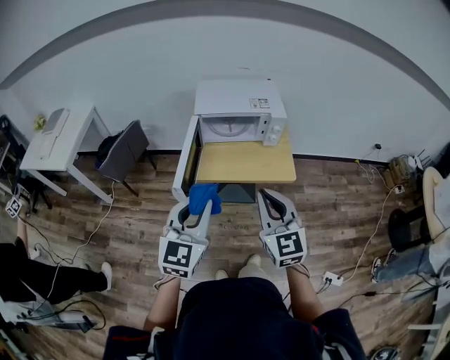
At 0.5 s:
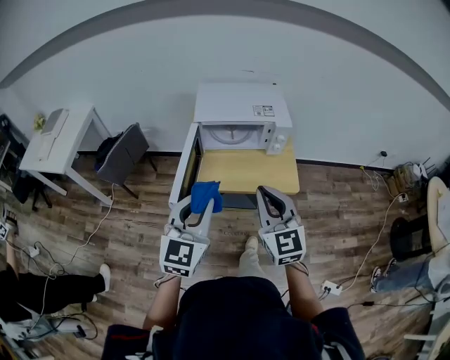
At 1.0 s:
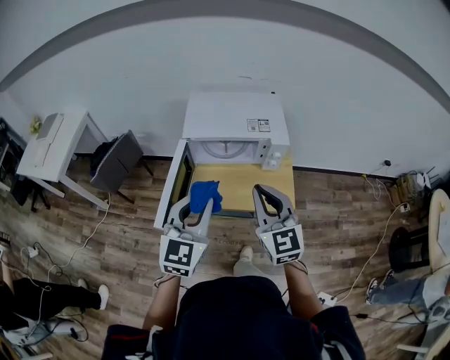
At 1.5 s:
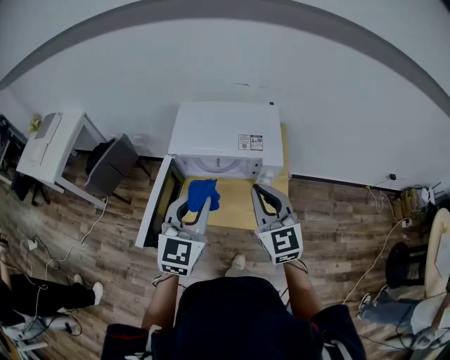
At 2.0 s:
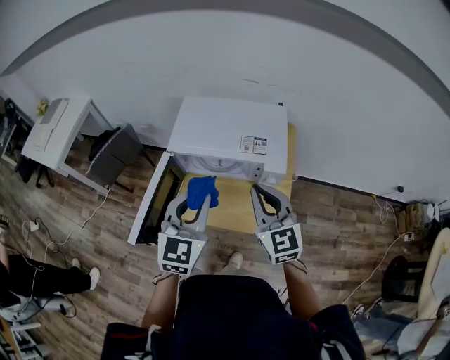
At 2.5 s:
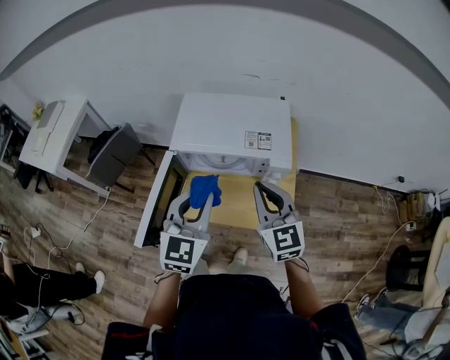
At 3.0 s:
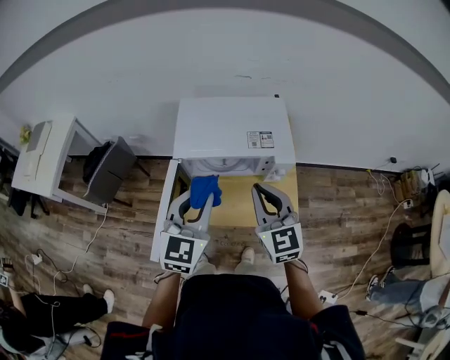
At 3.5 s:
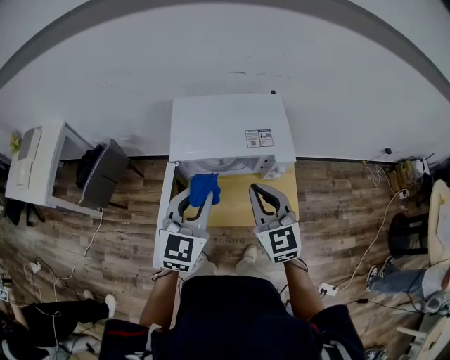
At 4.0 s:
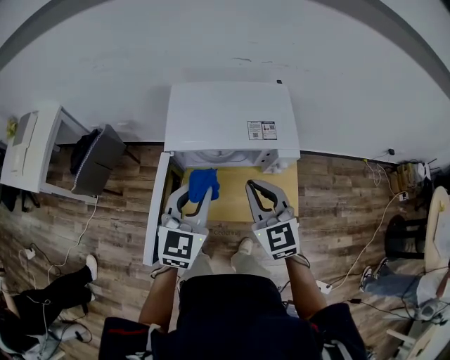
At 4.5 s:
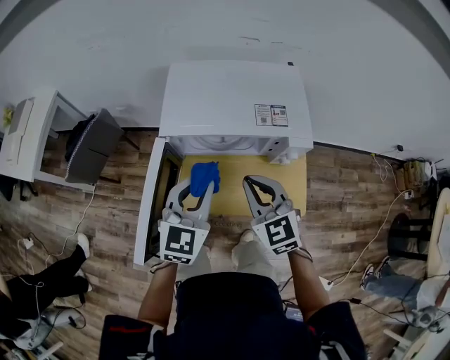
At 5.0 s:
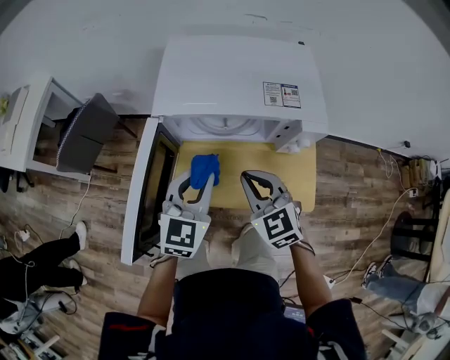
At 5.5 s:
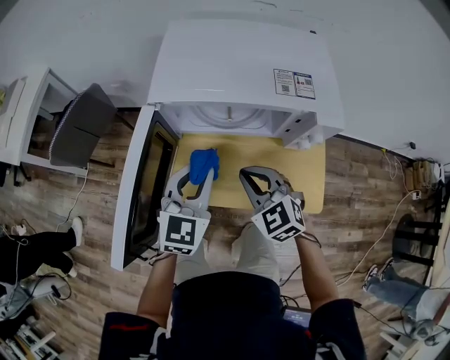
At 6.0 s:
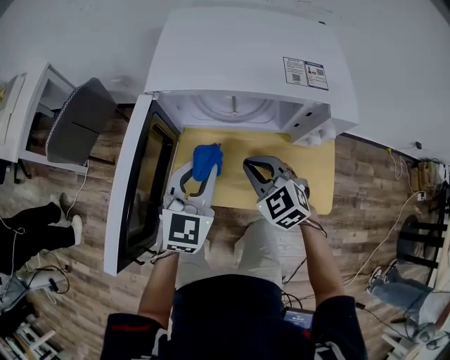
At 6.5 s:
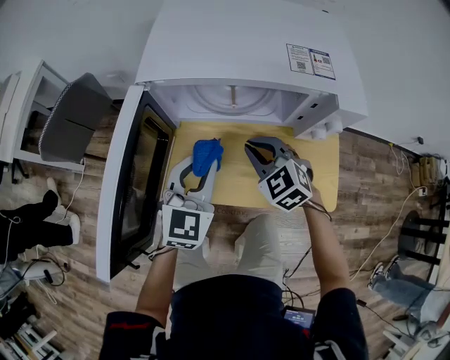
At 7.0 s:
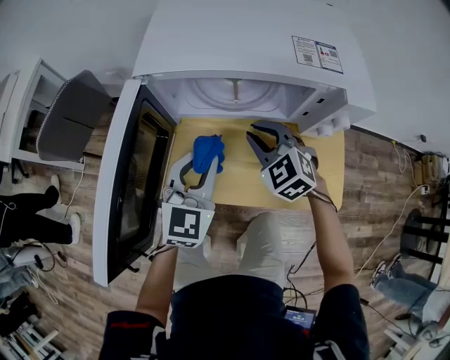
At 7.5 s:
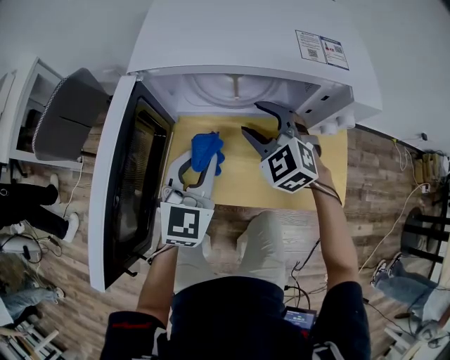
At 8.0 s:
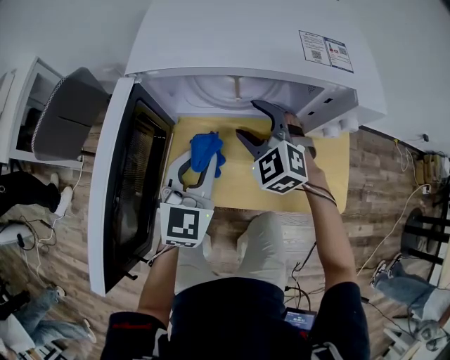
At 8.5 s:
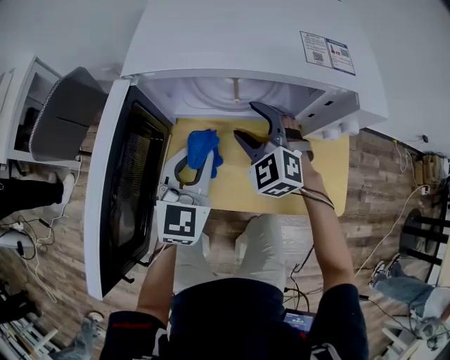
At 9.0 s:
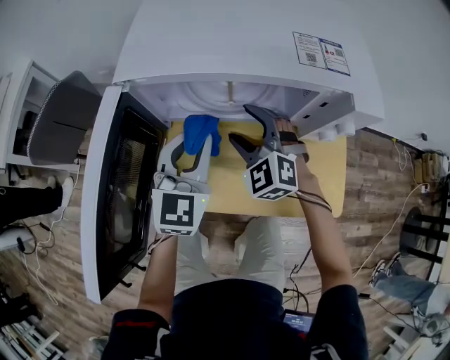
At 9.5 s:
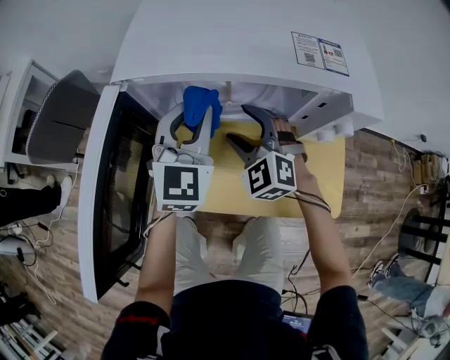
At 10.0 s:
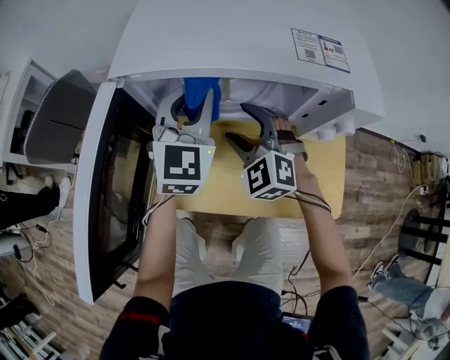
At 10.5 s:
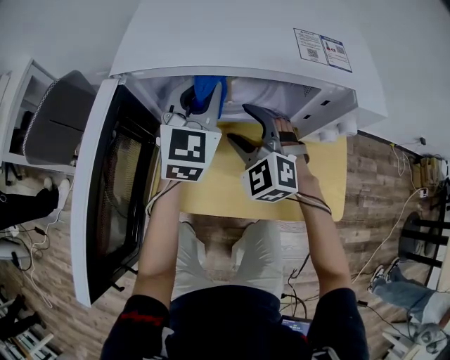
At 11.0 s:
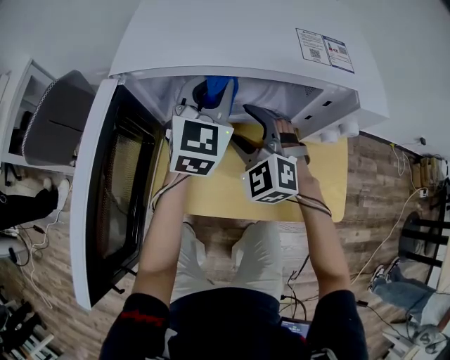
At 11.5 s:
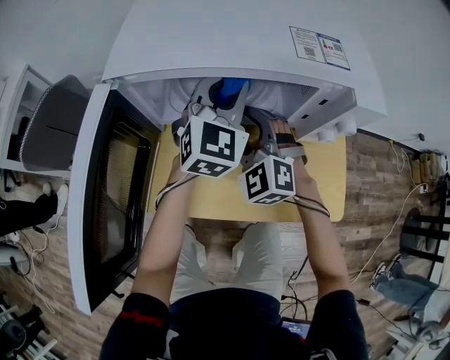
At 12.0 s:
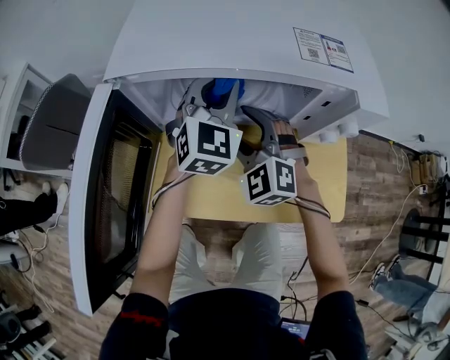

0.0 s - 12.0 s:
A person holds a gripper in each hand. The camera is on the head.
0.0 s - 2.0 s: The left gripper heads forward and to the right, covering roughly 30 cm. The right gripper is displaced forward by approximately 30 cm.
2.0 s - 4.0 s: The two grippers go about 10 cm to the left and downward.
4.0 s - 6.0 s: Both grippers move downward, roughly 25 cm. The right gripper rotates some 30 degrees.
6.0 s - 8.0 s: The left gripper is displaced downward by roughly 5 cm. The right gripper heads forward, covering some 10 cm, and opens its fingers.
8.0 s - 10.0 s: The left gripper shifts roughly 15 cm forward and upward.
10.0 s - 12.0 s: The left gripper travels to the right by about 5 cm.

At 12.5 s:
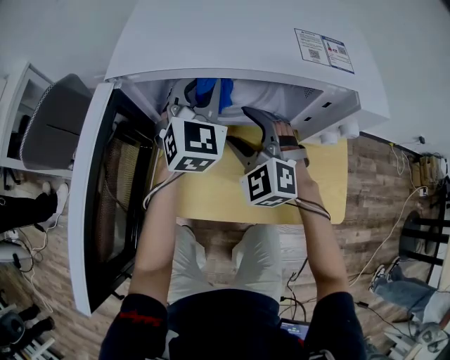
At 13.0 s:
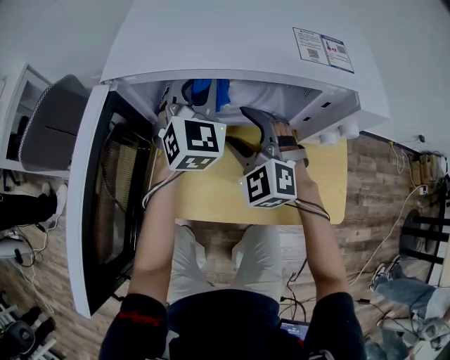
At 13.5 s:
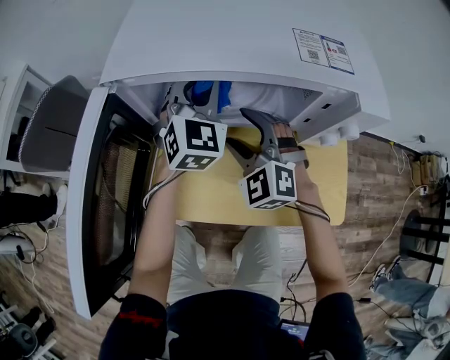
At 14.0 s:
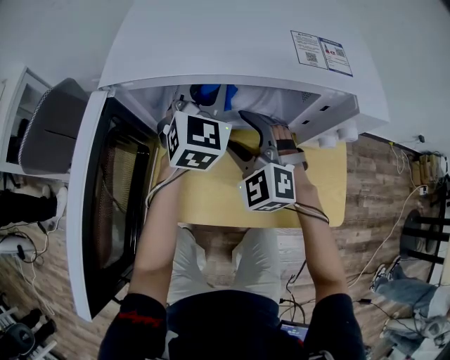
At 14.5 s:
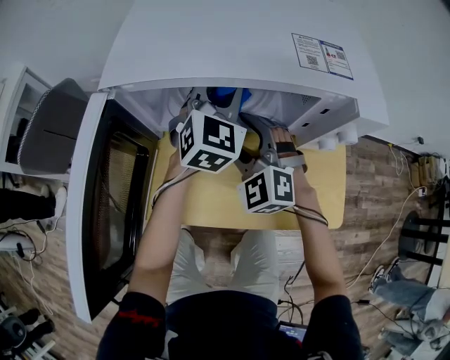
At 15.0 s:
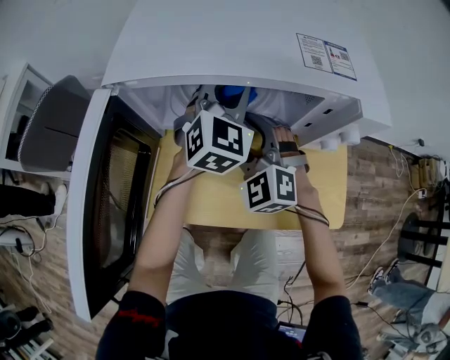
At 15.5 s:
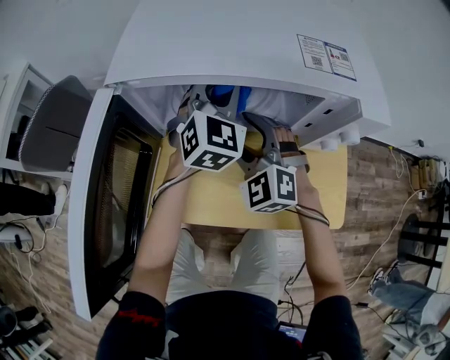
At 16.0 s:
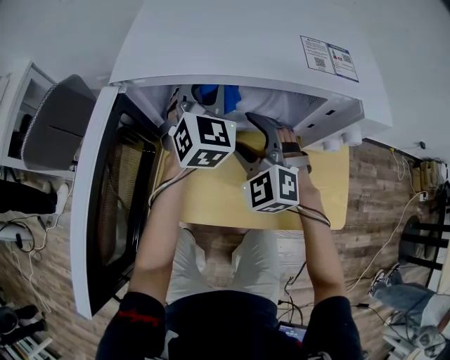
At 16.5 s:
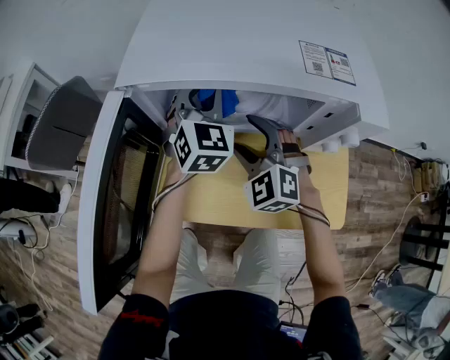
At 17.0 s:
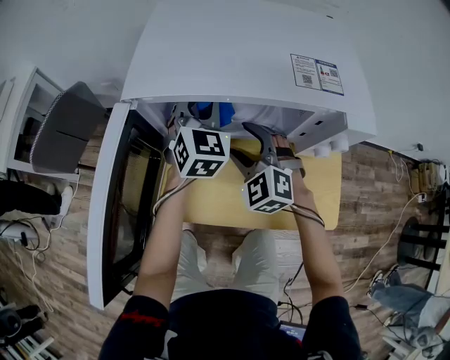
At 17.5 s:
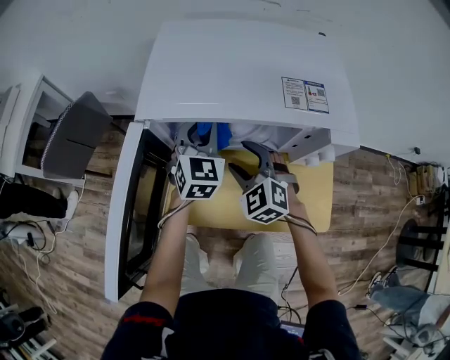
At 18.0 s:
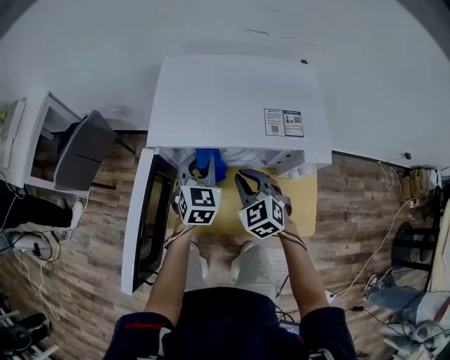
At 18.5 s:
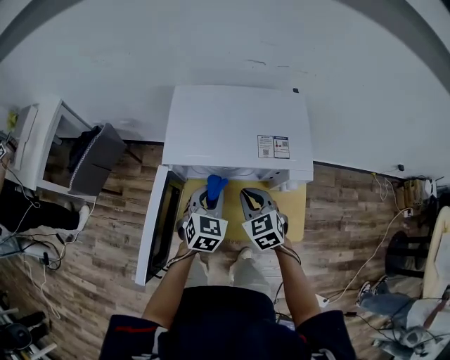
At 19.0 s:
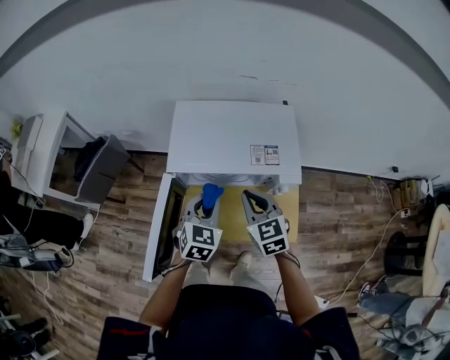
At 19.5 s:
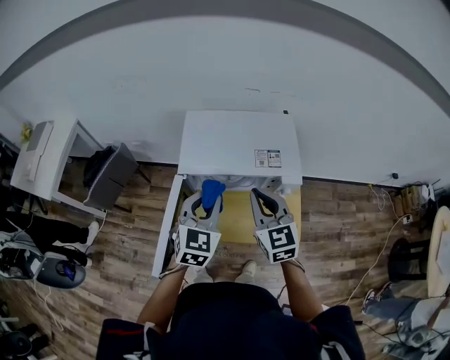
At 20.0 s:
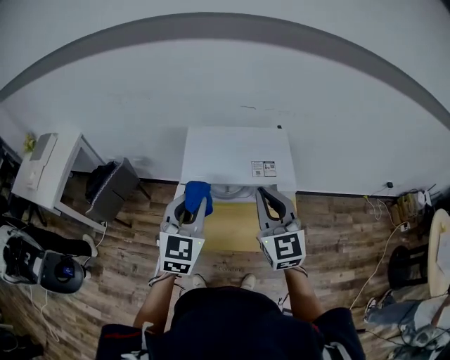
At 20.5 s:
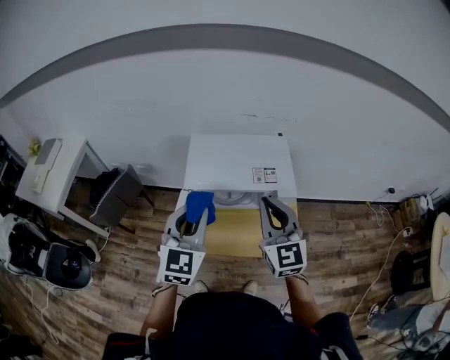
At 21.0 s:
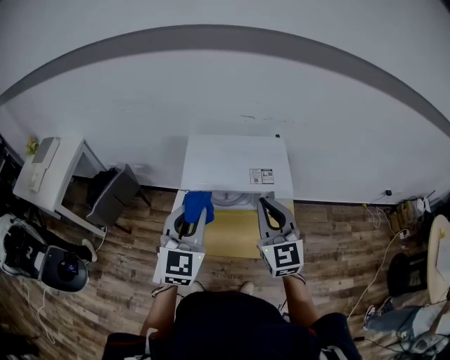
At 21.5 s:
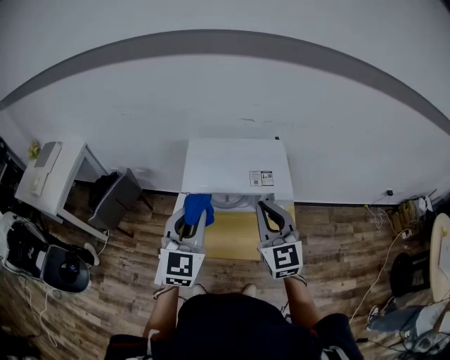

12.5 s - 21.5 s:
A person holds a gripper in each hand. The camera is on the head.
12.5 s - 14.5 s: The left gripper travels to the right by some 5 cm.
14.5 s - 17.0 s: The left gripper is displaced to the left by roughly 5 cm.
17.0 s - 19.5 s: The right gripper shifts approximately 30 cm upward, turns by about 40 degrees, and closes; the left gripper shifts about 30 cm upward and backward.
19.5 s - 21.5 s: Both grippers travel together upward, roughly 10 cm.

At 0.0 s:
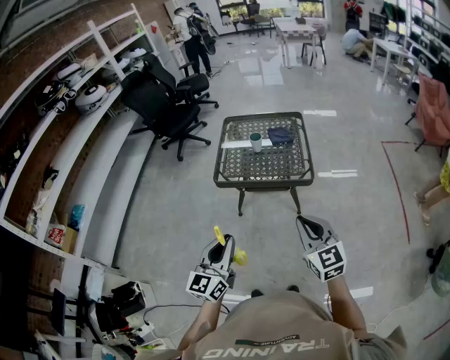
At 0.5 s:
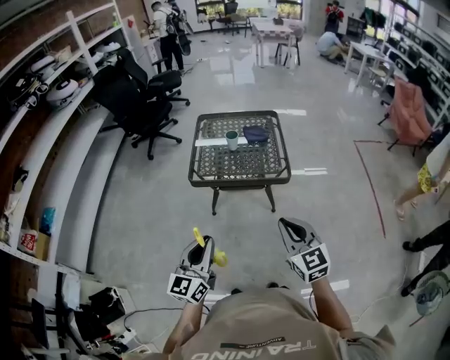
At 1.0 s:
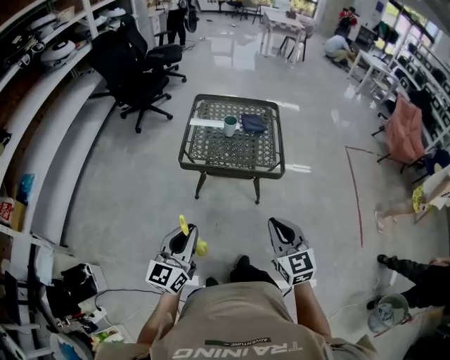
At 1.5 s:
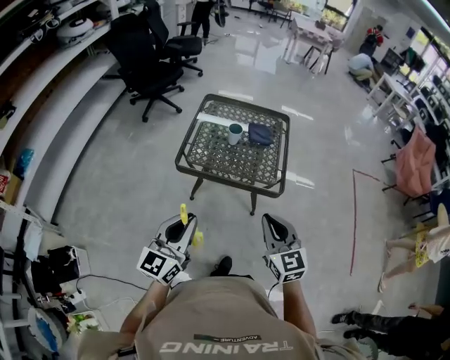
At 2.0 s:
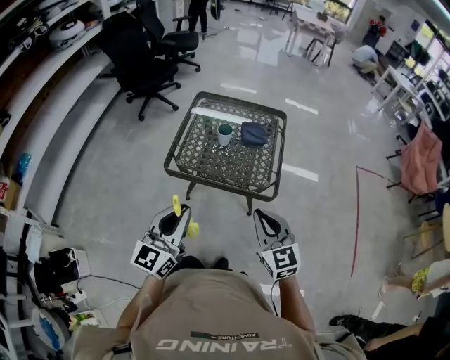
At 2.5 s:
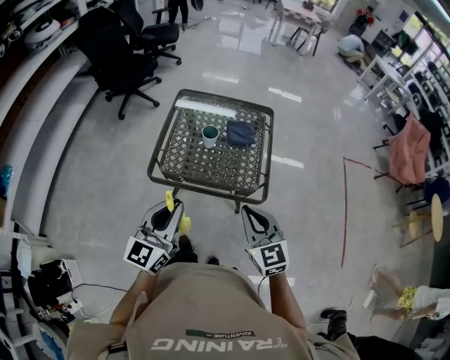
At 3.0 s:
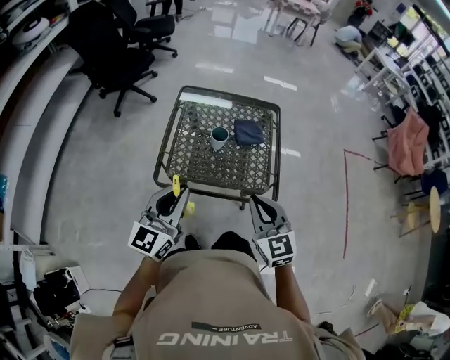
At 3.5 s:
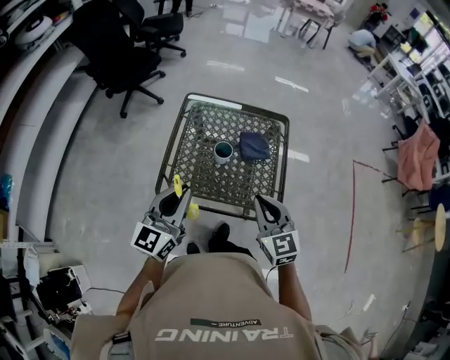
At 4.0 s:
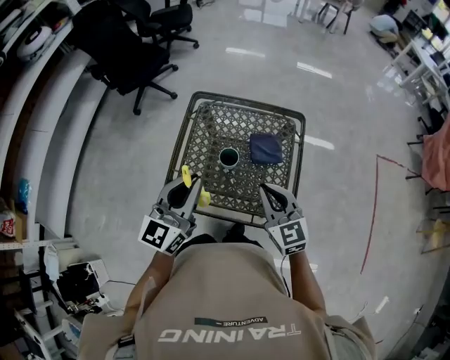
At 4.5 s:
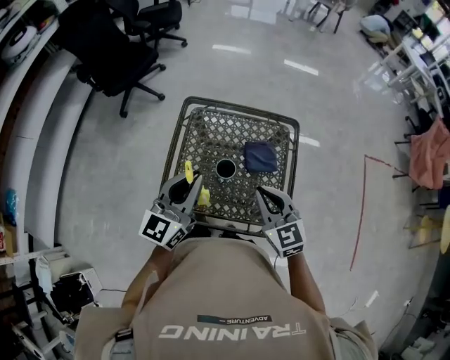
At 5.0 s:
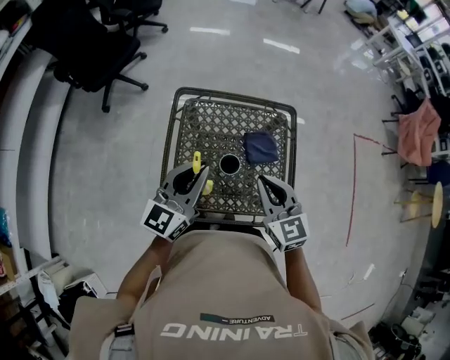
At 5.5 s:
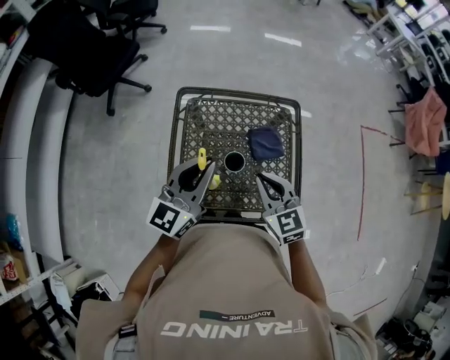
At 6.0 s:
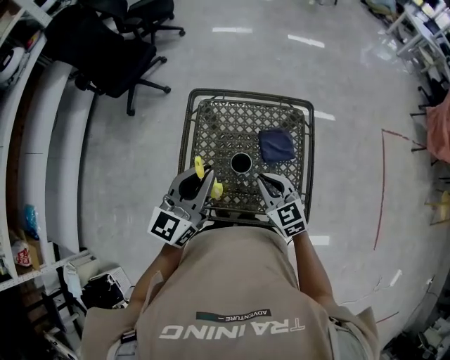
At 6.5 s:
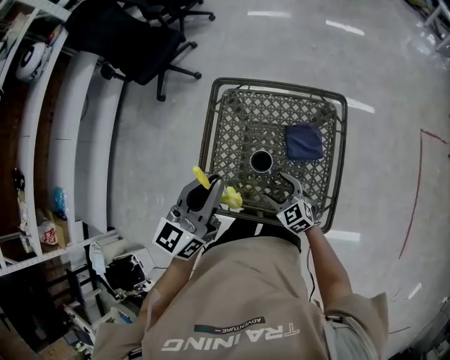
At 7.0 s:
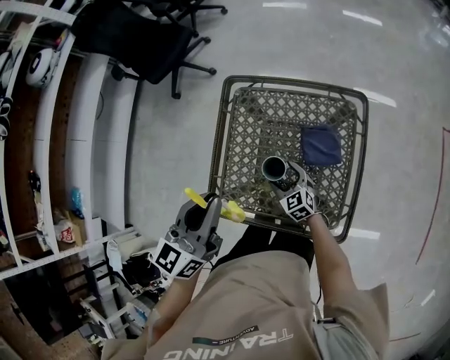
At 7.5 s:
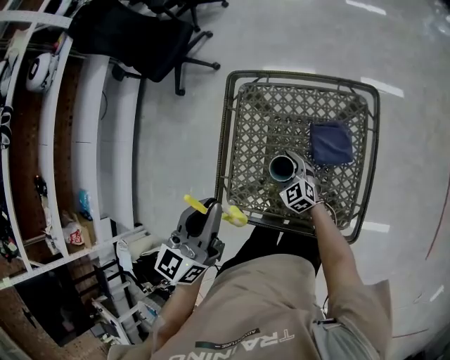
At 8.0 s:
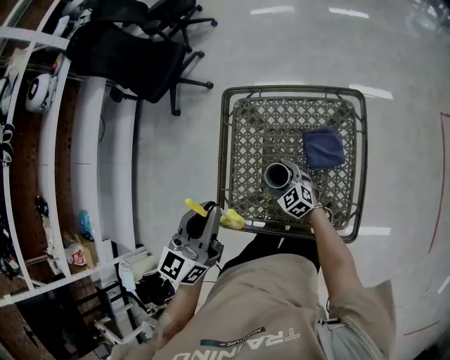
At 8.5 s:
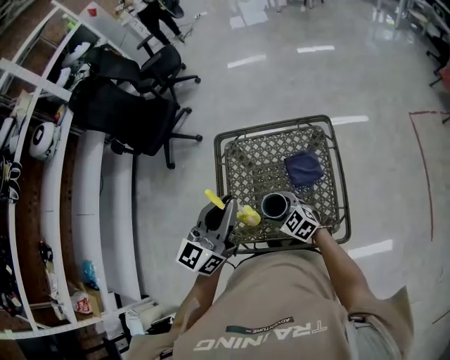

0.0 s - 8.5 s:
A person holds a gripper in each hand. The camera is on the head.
0.0 s - 2.0 s: Both grippers travel together forward, about 20 cm.
2.0 s - 4.0 s: Both grippers move forward, some 35 cm.
4.0 s - 6.5 s: The right gripper is displaced downward by about 25 cm, changes its angle by approximately 20 degrees, and opens its fingers, while the left gripper shifts roughly 10 cm forward.
6.5 s - 8.5 s: The left gripper is displaced upward by some 5 cm, while the right gripper heads upward and to the left, covering about 10 cm.
